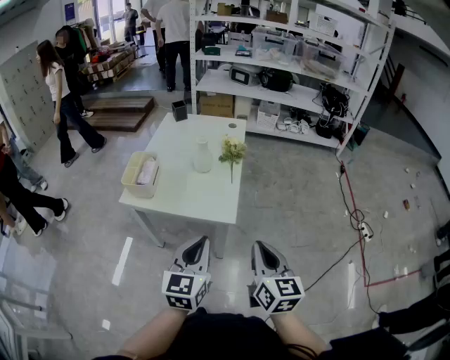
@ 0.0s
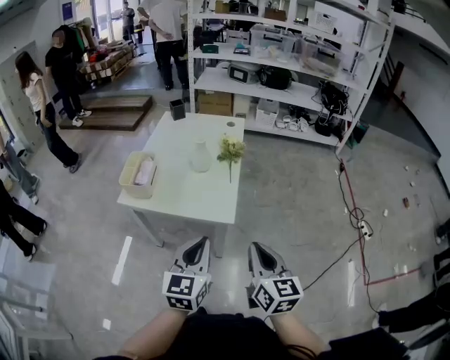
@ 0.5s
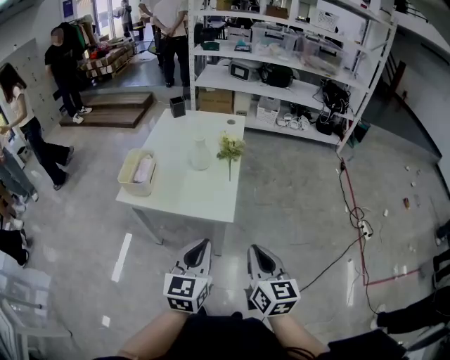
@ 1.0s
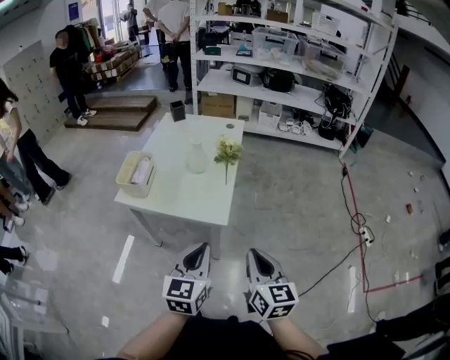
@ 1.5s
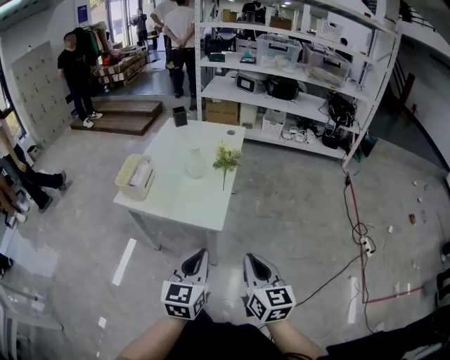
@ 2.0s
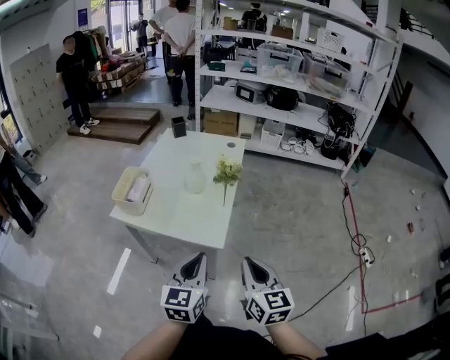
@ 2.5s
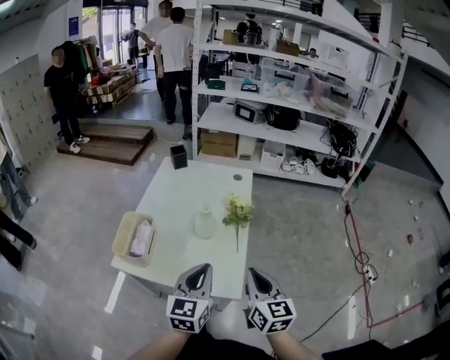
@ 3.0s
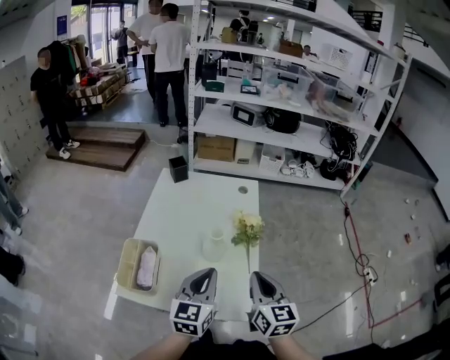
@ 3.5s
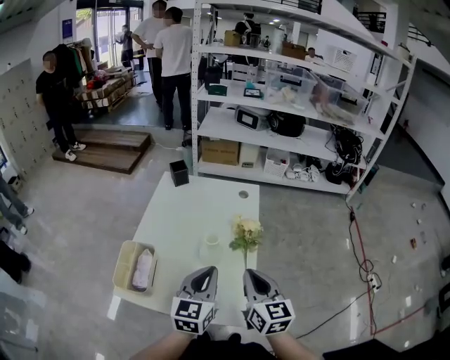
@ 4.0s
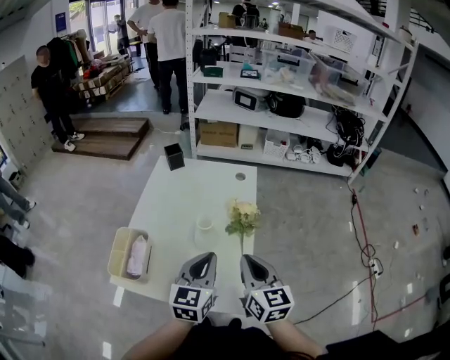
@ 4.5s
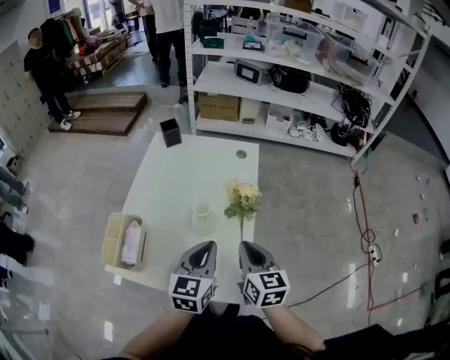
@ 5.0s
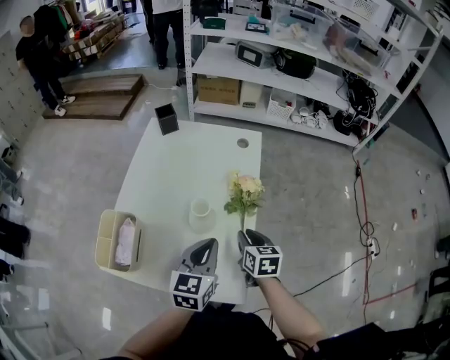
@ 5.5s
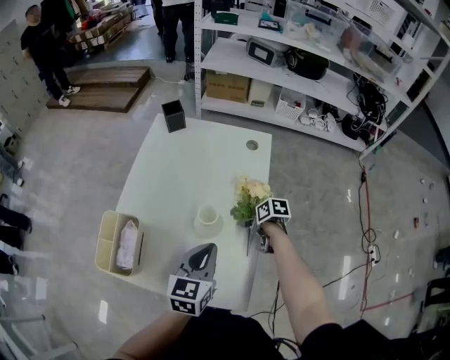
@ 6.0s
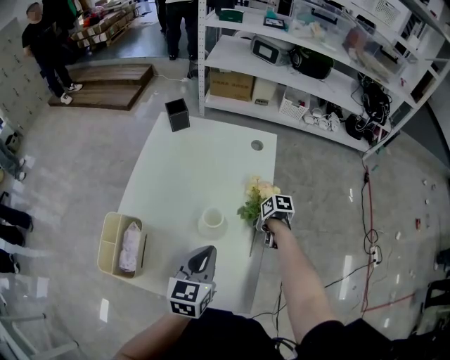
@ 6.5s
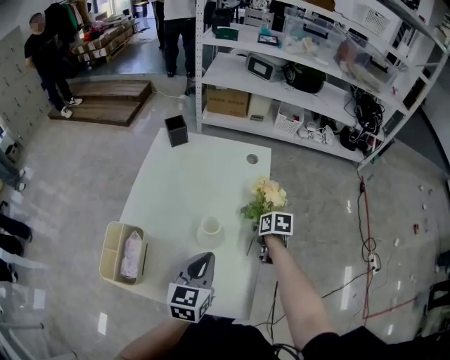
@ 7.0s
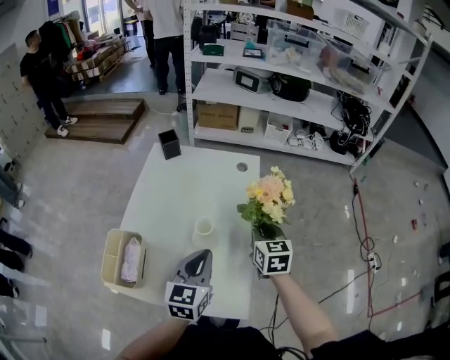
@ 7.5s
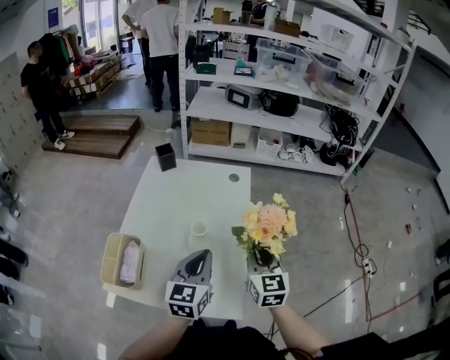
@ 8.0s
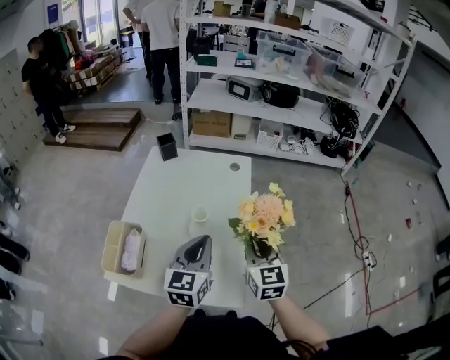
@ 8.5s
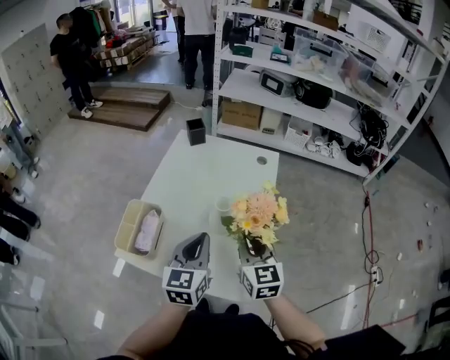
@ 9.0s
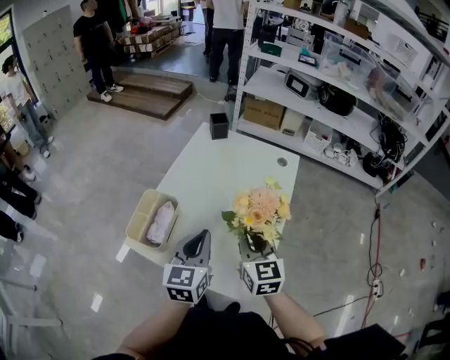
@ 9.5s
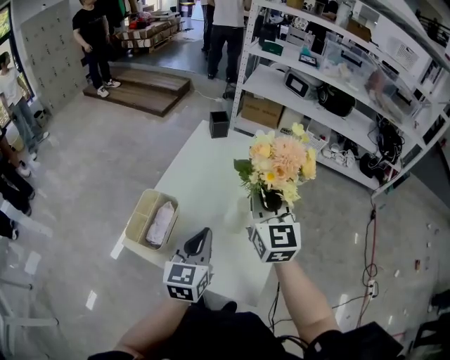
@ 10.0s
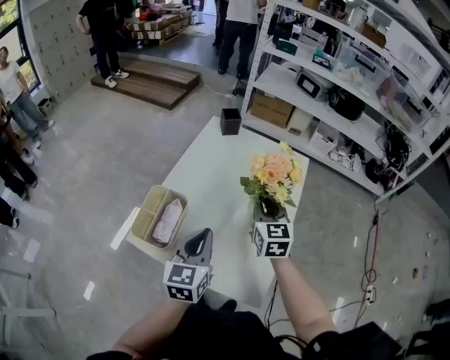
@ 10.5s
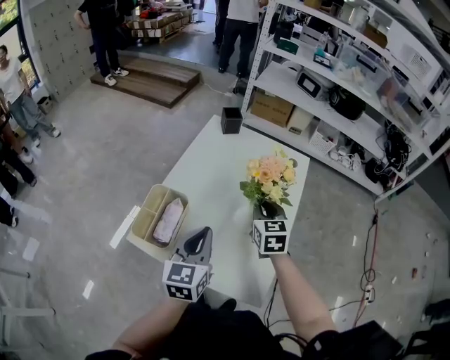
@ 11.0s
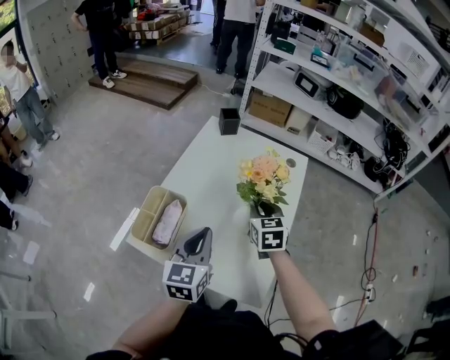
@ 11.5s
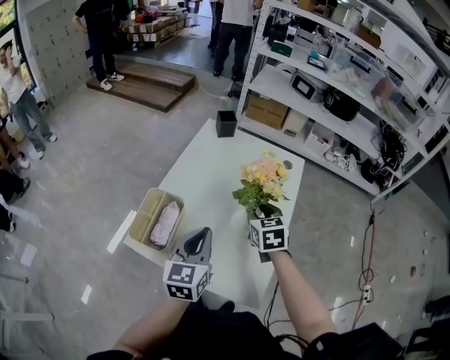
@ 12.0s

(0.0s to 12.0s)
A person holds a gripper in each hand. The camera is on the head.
0.0s - 2.0s: Both grippers travel together to the right, roughly 5 cm.
2.0s - 4.0s: Both grippers travel together forward, about 35 cm.
4.0s - 6.0s: The right gripper is displaced downward by some 30 cm, angles its fingers downward, by about 50 degrees, and opens; the left gripper heads downward, covering about 10 cm.
6.0s - 8.0s: The left gripper goes some 5 cm upward. Meanwhile the right gripper shifts some 25 cm upward, angles its fingers upward, by approximately 50 degrees, and closes up.
8.0s - 10.0s: The left gripper heads to the left, covering approximately 10 cm. The right gripper travels to the left, upward and forward by some 20 cm, and turns by some 20 degrees.
10.0s - 12.0s: The right gripper travels downward by approximately 15 cm, tips its fingers downward by roughly 40 degrees, and opens.

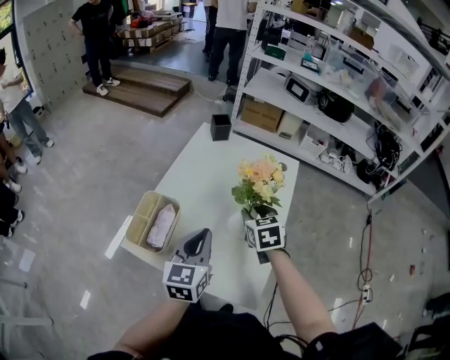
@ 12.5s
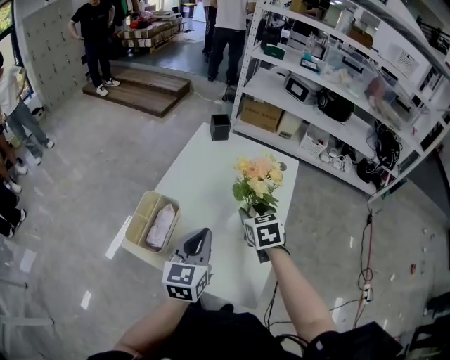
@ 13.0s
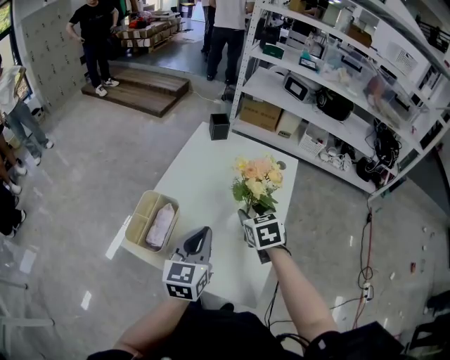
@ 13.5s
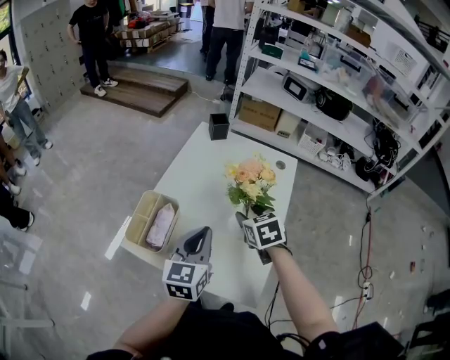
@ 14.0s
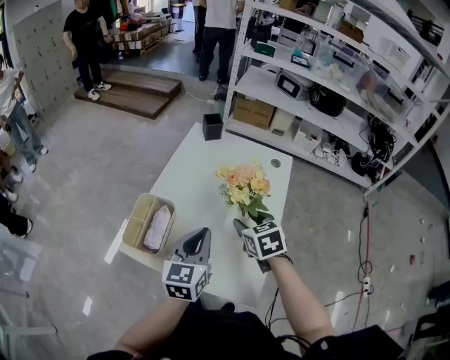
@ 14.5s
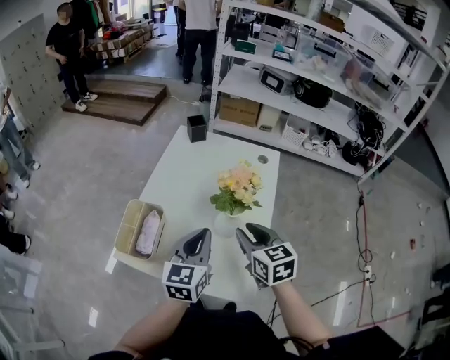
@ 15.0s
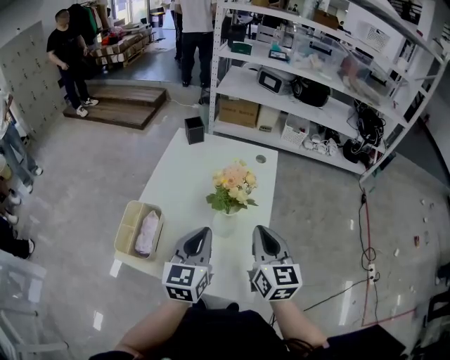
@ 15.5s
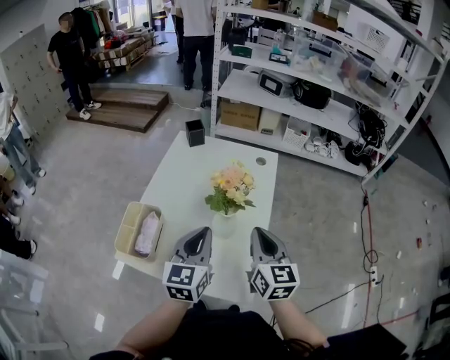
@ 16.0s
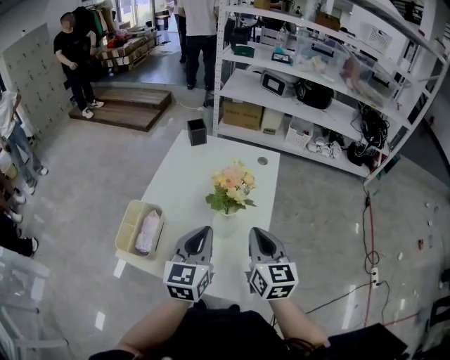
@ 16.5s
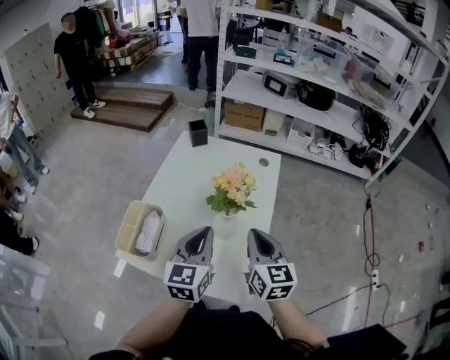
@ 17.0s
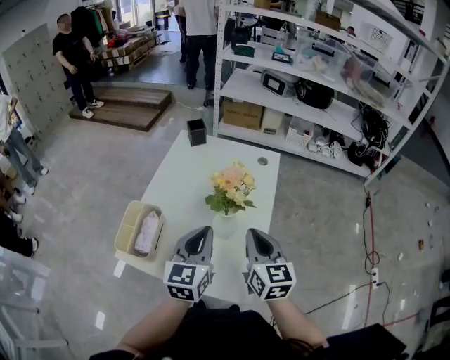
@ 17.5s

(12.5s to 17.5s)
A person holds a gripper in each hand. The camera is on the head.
12.5s - 15.0s: The right gripper goes approximately 10 cm backward.
15.0s - 17.5s: The right gripper ends up about 5 cm from where it was, and closes.

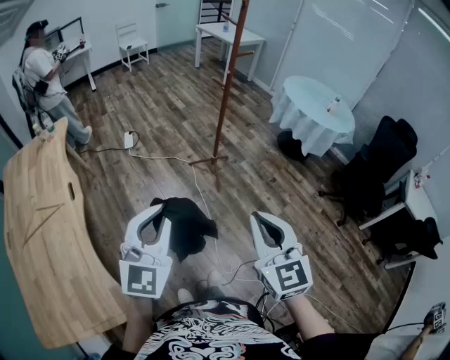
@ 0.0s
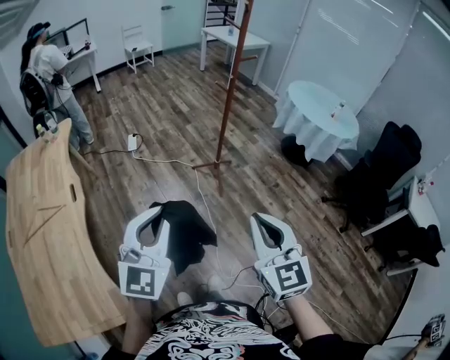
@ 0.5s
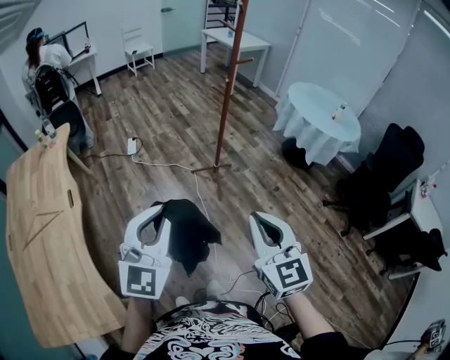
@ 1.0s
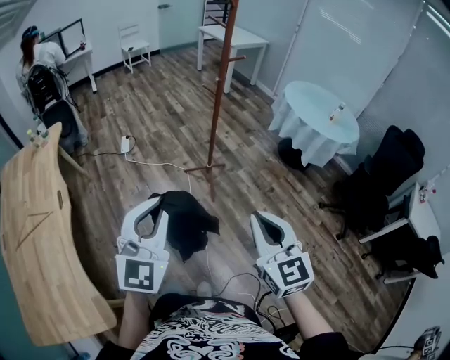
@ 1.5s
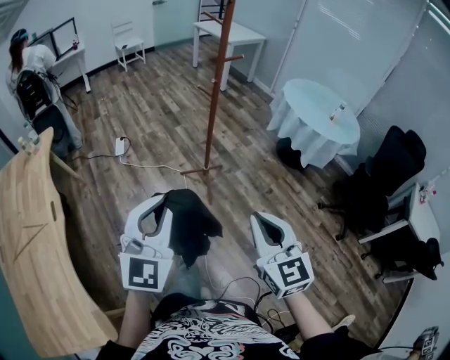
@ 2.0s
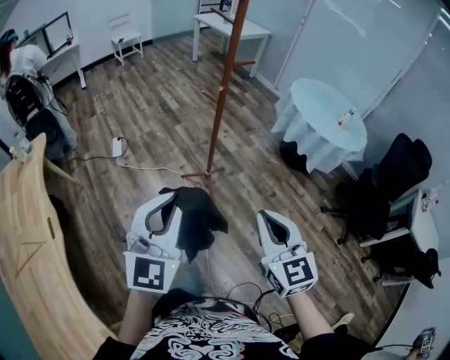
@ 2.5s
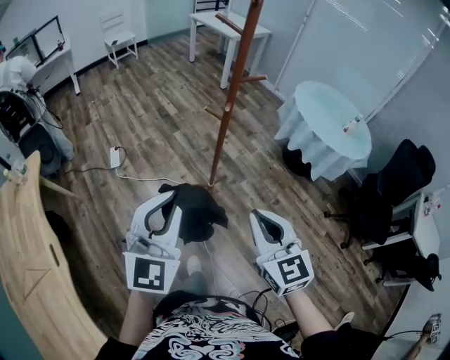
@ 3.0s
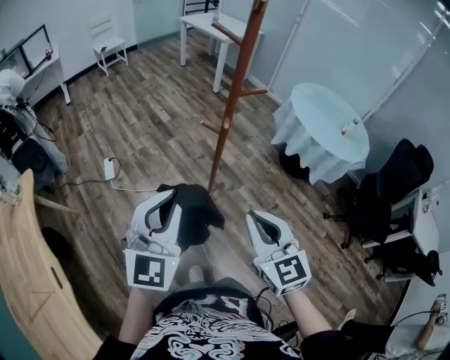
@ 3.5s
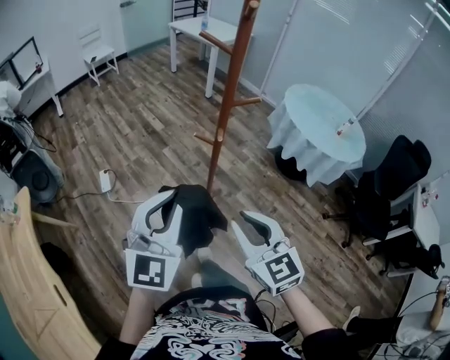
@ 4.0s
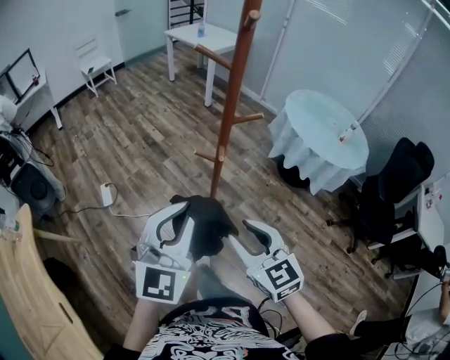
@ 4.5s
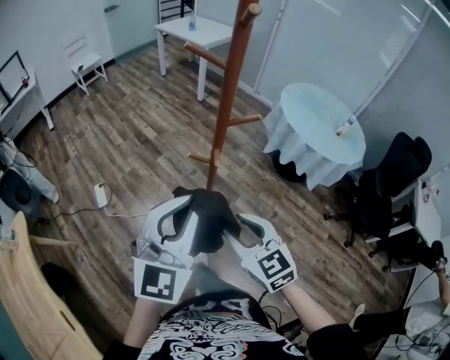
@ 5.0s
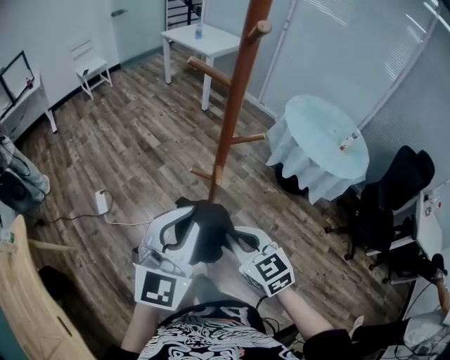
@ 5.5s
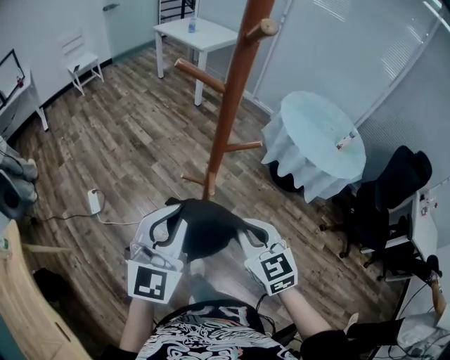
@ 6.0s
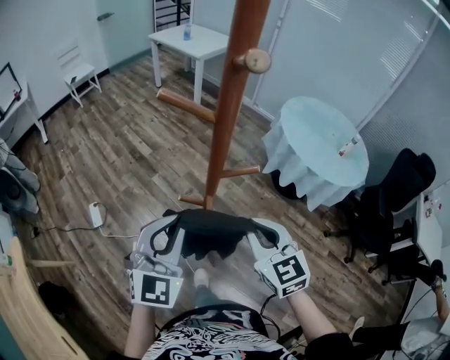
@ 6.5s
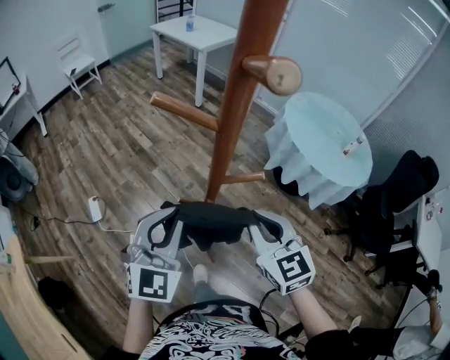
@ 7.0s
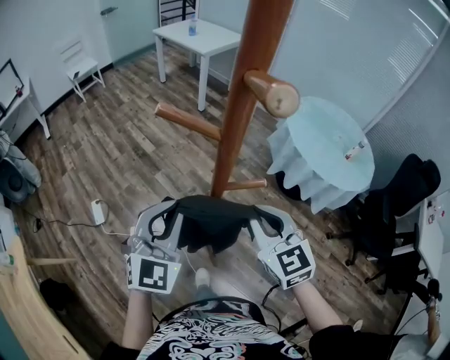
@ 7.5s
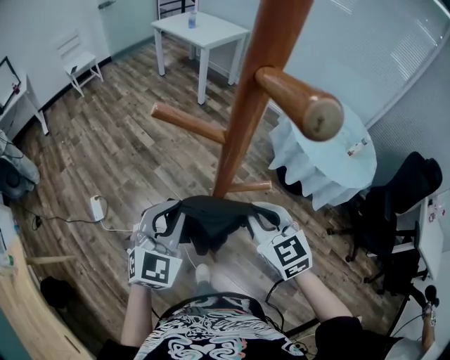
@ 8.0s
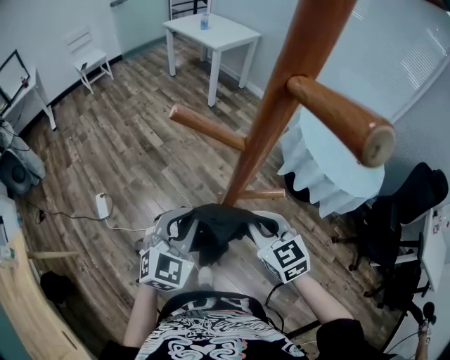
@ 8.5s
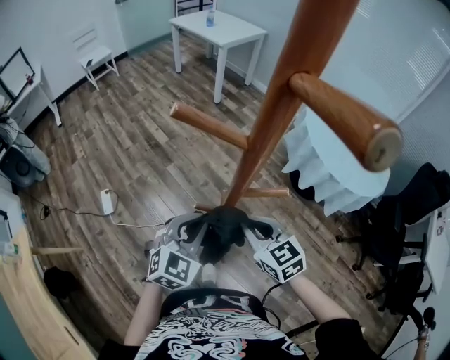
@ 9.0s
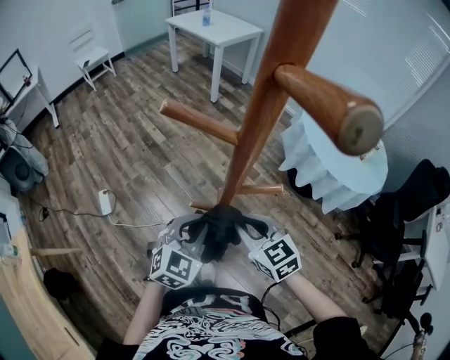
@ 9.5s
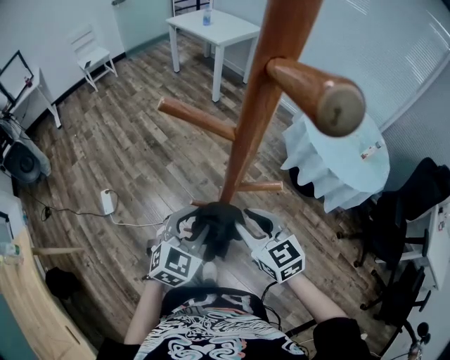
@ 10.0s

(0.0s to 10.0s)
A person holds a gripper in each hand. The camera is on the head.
0.0s - 2.0s: Both grippers travel together forward and to the right, roughly 20 cm.
2.0s - 4.0s: Both grippers travel together forward, some 40 cm.
4.0s - 6.0s: Both grippers move forward, approximately 20 cm. The right gripper opens, then closes once more.
6.0s - 8.0s: The right gripper heads forward, covering approximately 15 cm. Meanwhile the left gripper travels forward and downward by approximately 15 cm.
8.0s - 10.0s: The right gripper changes place by roughly 5 cm, and opens up. Meanwhile the left gripper heads downward, covering about 10 cm, and opens.
